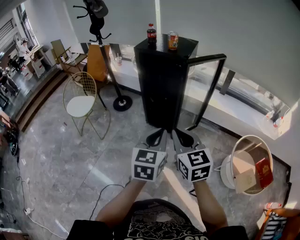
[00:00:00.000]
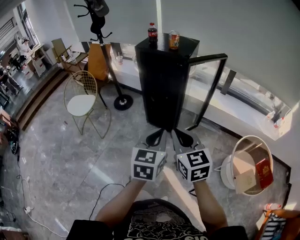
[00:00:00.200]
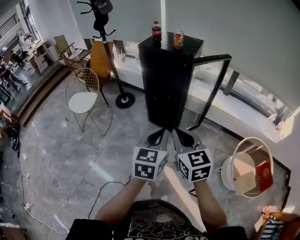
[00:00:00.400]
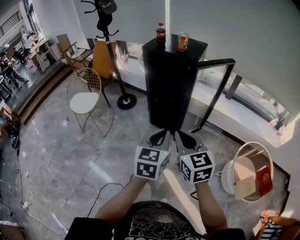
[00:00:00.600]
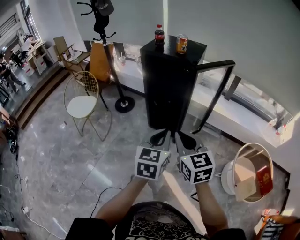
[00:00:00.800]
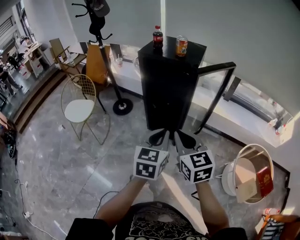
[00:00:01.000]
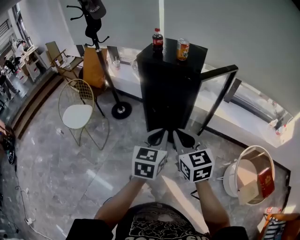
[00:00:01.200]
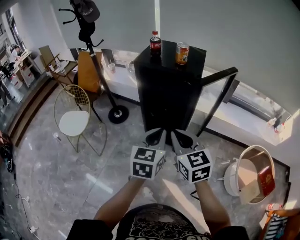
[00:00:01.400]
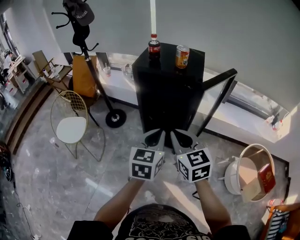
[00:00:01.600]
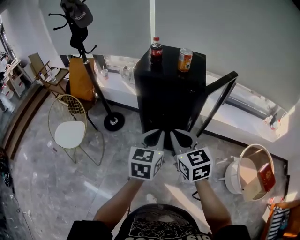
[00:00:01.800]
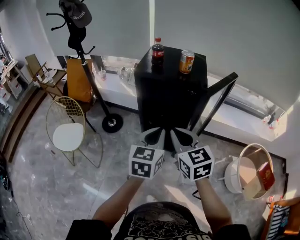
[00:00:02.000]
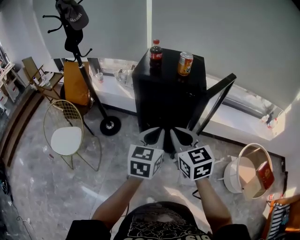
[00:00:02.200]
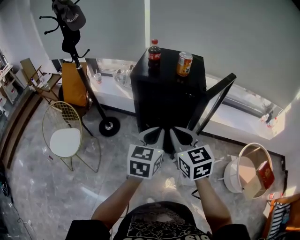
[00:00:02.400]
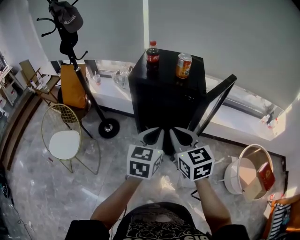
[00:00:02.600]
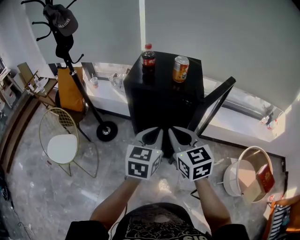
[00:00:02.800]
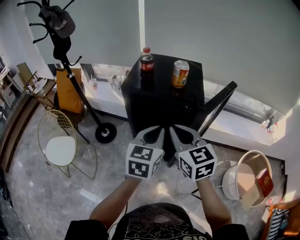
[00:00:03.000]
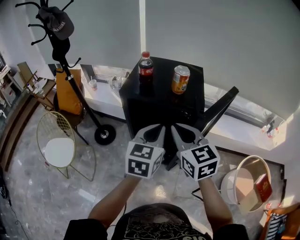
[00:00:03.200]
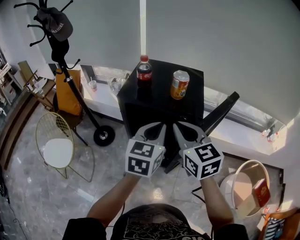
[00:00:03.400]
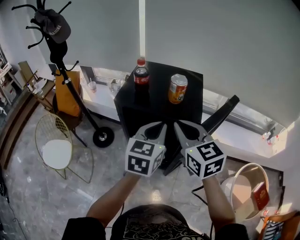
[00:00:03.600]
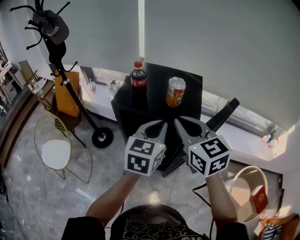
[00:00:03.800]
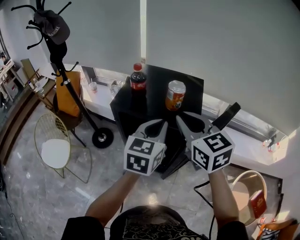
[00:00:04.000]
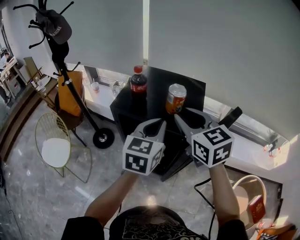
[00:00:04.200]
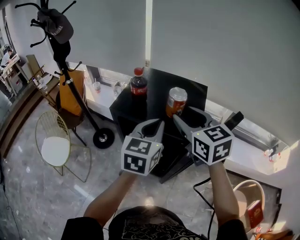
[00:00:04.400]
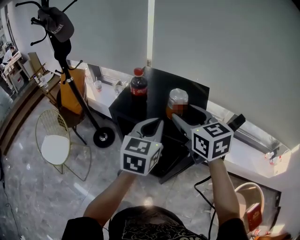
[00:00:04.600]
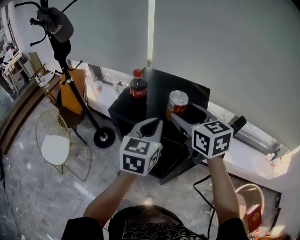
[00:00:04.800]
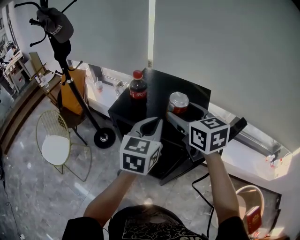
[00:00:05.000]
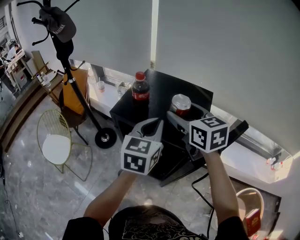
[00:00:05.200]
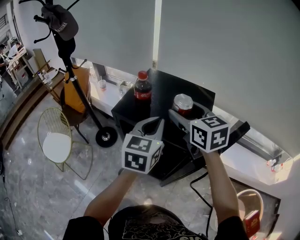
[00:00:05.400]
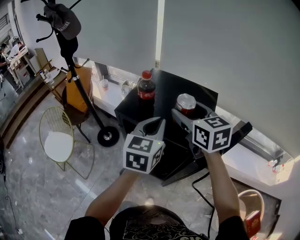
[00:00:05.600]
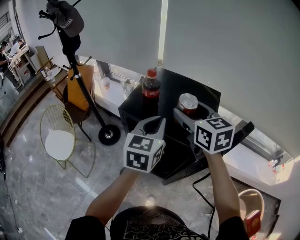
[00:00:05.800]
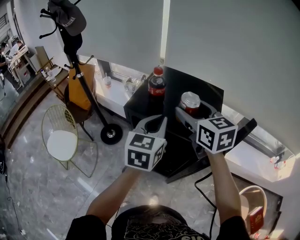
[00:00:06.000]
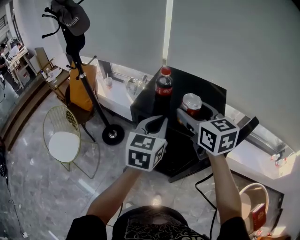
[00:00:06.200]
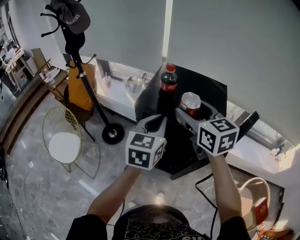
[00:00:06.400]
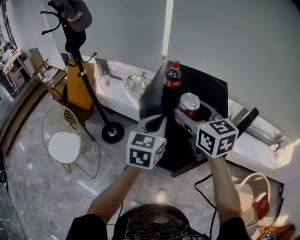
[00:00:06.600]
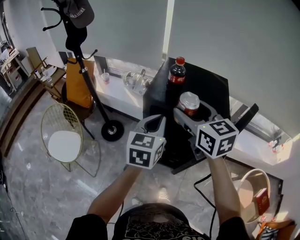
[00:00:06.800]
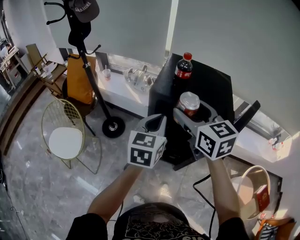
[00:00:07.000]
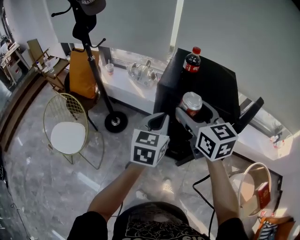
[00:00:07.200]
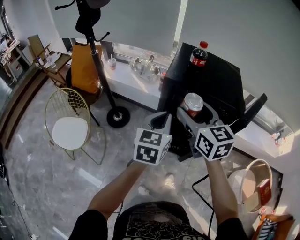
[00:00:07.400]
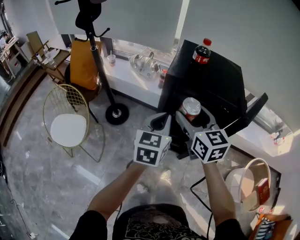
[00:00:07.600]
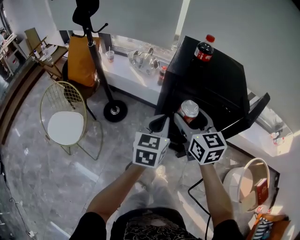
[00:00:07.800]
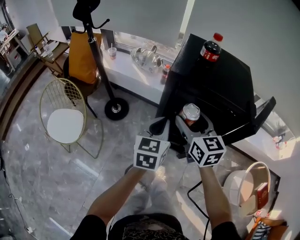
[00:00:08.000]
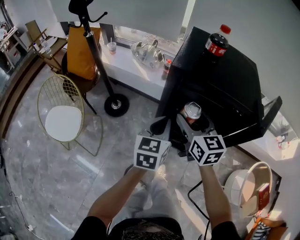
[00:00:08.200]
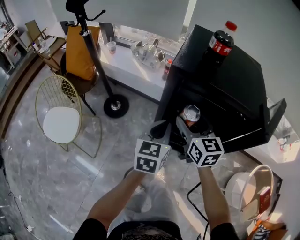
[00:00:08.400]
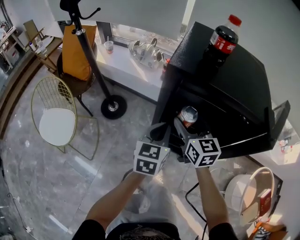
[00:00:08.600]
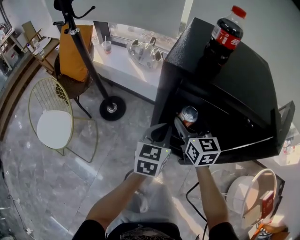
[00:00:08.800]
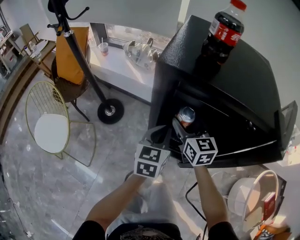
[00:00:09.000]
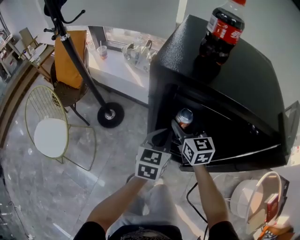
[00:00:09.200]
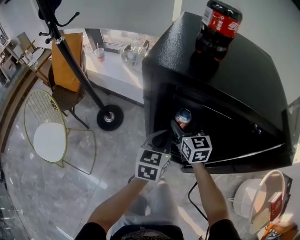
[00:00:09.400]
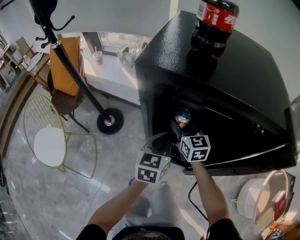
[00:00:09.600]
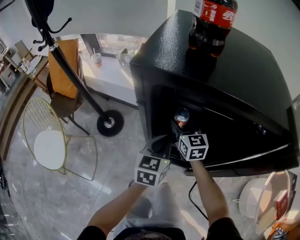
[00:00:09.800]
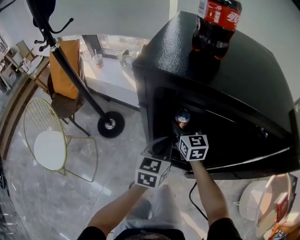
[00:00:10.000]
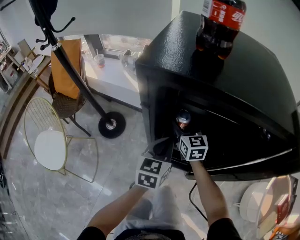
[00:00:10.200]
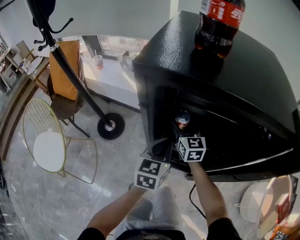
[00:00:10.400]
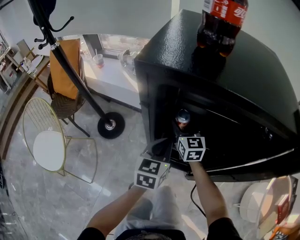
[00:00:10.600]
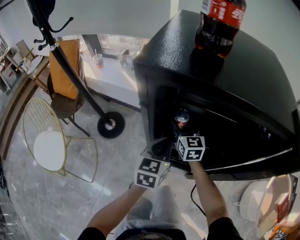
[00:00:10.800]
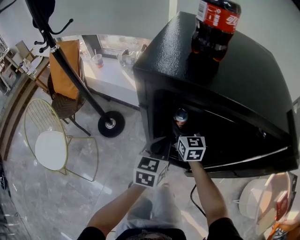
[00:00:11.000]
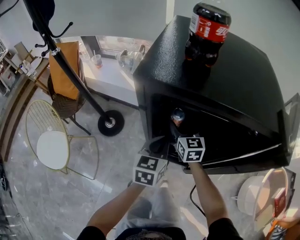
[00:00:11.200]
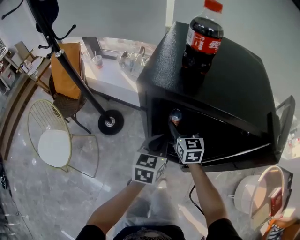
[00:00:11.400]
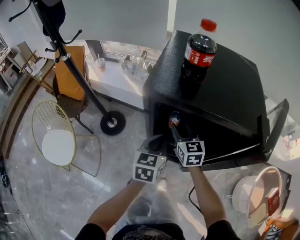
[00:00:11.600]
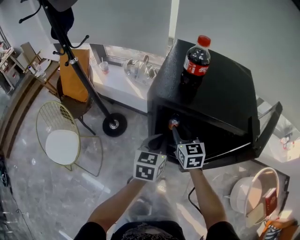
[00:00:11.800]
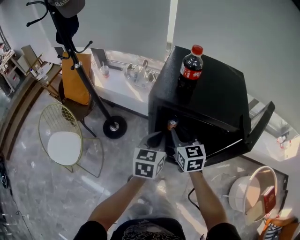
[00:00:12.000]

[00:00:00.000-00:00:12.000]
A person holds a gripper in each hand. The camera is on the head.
00:00:00.000 to 00:00:01.600: The left gripper is displaced forward by roughly 25 cm, while the right gripper heads forward and to the left, covering about 25 cm.
00:00:01.600 to 00:00:03.000: Both grippers travel together forward, some 15 cm.
00:00:03.000 to 00:00:04.400: The left gripper moves forward, roughly 15 cm. Meanwhile the right gripper travels forward and to the right by some 20 cm, and opens.
00:00:04.400 to 00:00:06.000: The left gripper travels to the left by some 5 cm. Meanwhile the right gripper moves forward, approximately 5 cm, and opens up.
00:00:06.000 to 00:00:07.600: The two grippers go about 20 cm to the left, backward and downward.
00:00:07.600 to 00:00:09.000: The grippers both shift downward and forward by approximately 25 cm.
00:00:09.000 to 00:00:10.400: The right gripper is displaced downward and forward by about 15 cm. The left gripper goes approximately 5 cm downward.
00:00:10.400 to 00:00:12.000: The left gripper travels upward by some 20 cm. The right gripper is displaced upward and backward by about 25 cm, and closes its fingers.

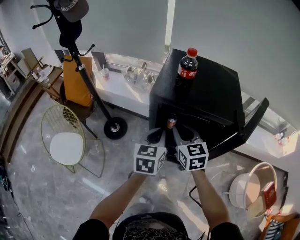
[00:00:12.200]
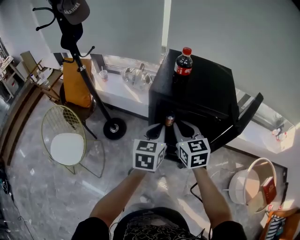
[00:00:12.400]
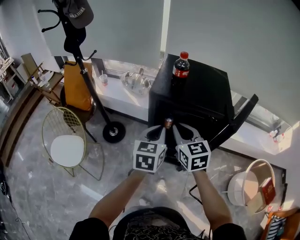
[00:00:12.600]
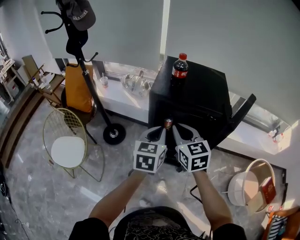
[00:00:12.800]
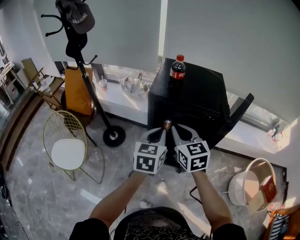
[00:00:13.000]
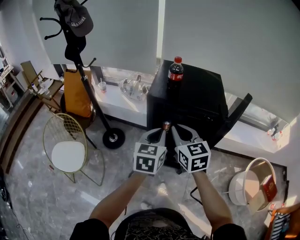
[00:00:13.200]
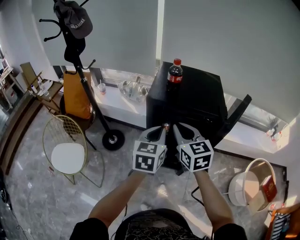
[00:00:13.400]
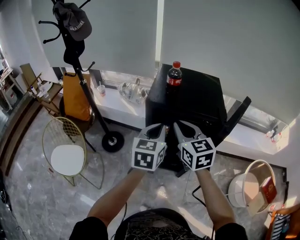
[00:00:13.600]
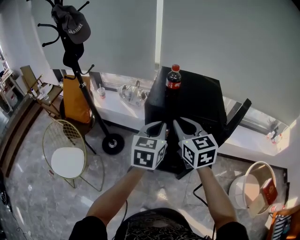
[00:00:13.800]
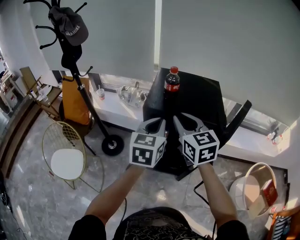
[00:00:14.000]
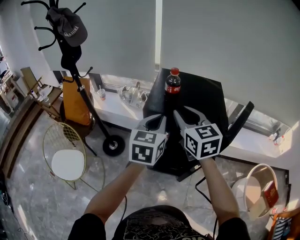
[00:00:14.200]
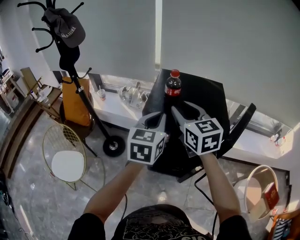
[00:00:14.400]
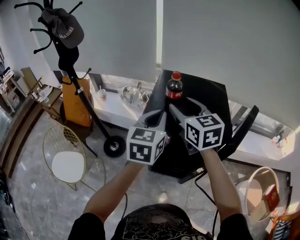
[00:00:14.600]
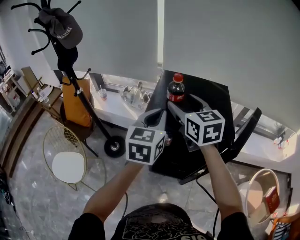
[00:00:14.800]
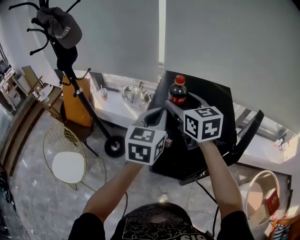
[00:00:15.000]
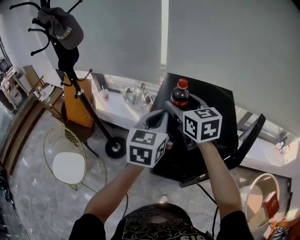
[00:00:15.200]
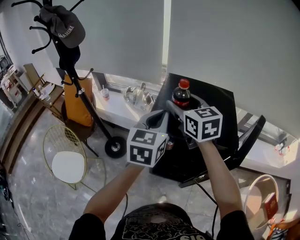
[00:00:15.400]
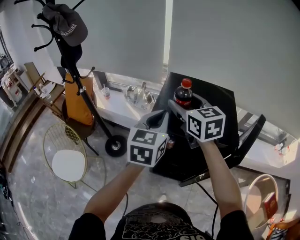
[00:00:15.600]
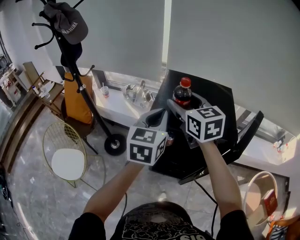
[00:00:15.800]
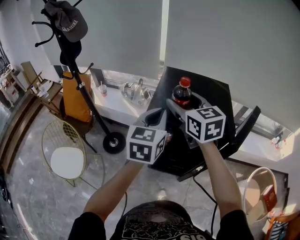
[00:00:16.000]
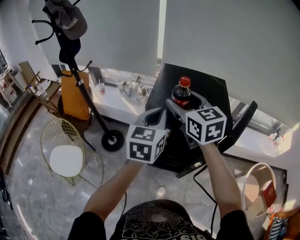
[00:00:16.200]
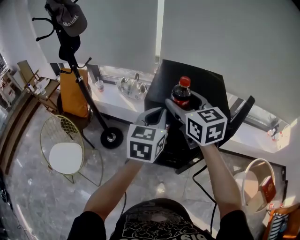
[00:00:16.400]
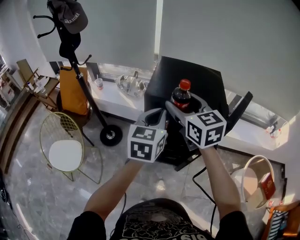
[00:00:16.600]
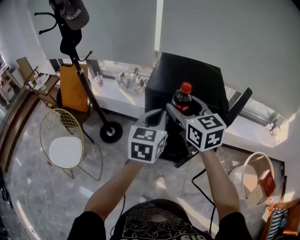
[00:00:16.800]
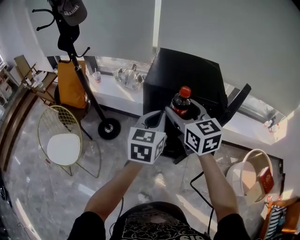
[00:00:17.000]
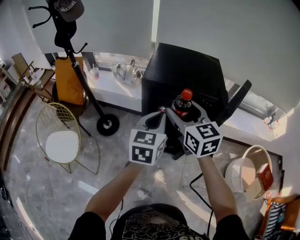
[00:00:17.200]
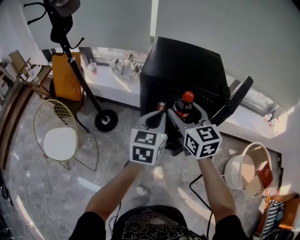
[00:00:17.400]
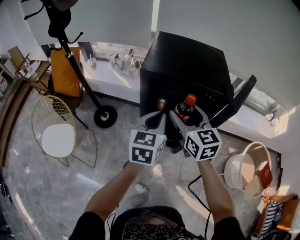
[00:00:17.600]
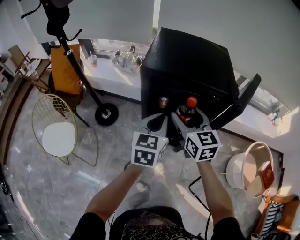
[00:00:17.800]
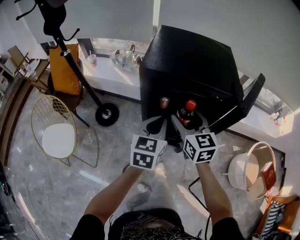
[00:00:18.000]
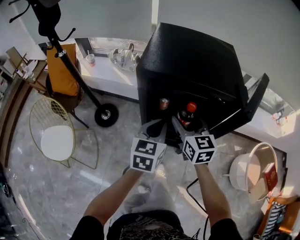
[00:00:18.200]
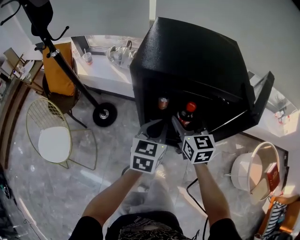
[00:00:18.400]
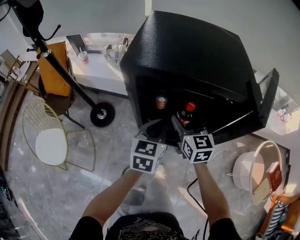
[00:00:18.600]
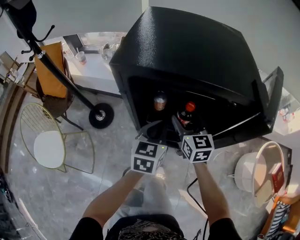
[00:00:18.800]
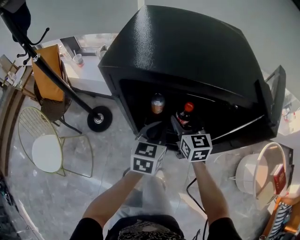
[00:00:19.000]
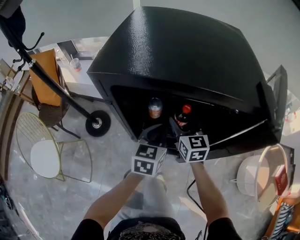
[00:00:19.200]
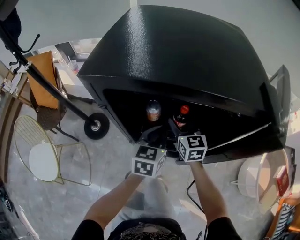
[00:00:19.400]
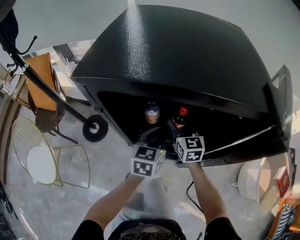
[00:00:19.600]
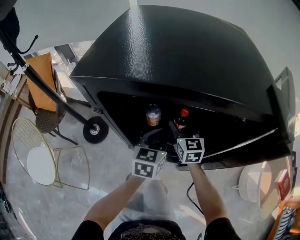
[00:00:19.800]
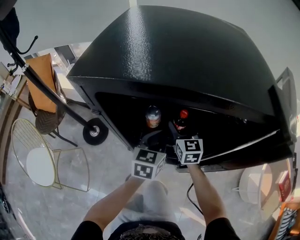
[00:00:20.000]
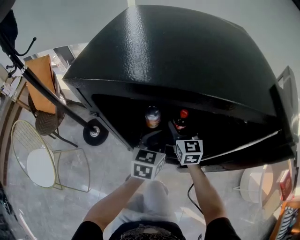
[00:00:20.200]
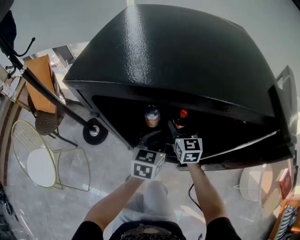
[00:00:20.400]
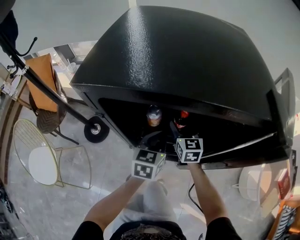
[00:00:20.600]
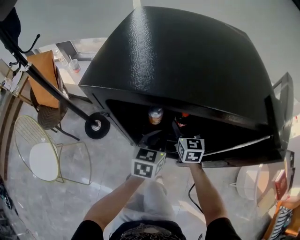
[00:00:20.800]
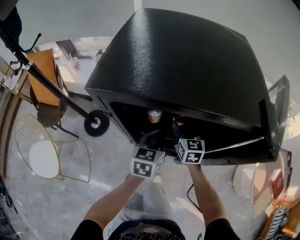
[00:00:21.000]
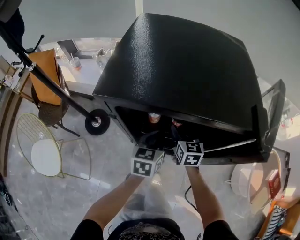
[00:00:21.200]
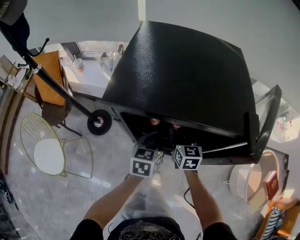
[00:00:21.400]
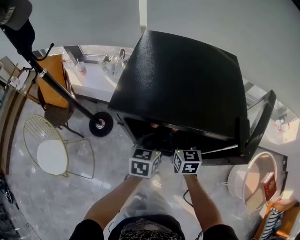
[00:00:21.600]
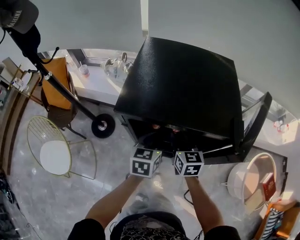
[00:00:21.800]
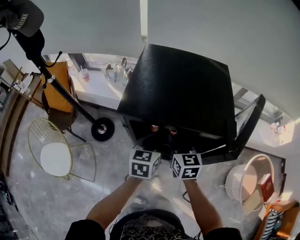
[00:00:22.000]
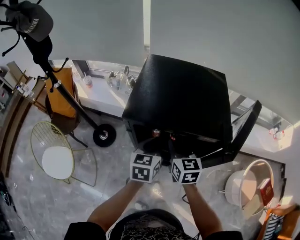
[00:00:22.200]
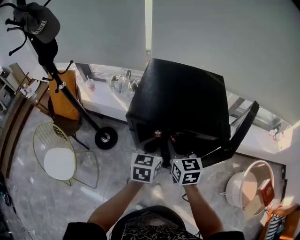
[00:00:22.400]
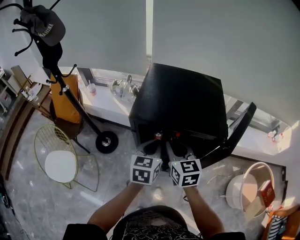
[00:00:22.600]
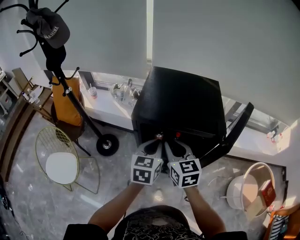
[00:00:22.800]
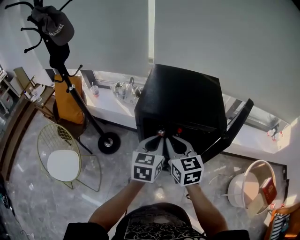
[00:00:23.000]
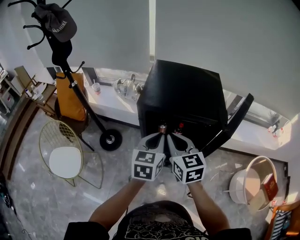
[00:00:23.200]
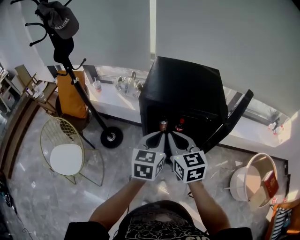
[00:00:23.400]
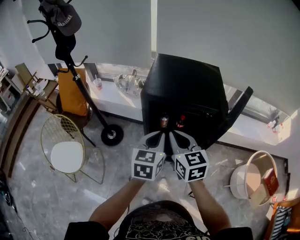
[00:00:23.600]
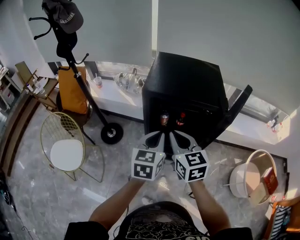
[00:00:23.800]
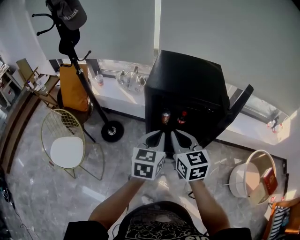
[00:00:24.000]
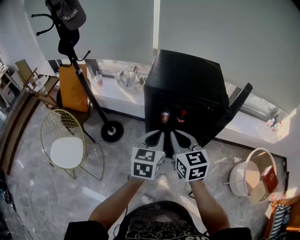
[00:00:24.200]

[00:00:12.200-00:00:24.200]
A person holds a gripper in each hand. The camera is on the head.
00:00:12.200 to 00:00:13.800: Both grippers move upward, about 15 cm.
00:00:13.800 to 00:00:15.200: The grippers both shift forward by about 15 cm. The right gripper opens up.
00:00:15.200 to 00:00:16.600: The two grippers go roughly 15 cm backward.
00:00:16.600 to 00:00:18.200: The two grippers go roughly 20 cm downward.
00:00:18.200 to 00:00:19.800: The two grippers go approximately 25 cm downward and forward.
00:00:19.800 to 00:00:21.200: The left gripper shifts by some 5 cm. The right gripper changes place by about 5 cm.
00:00:21.200 to 00:00:22.600: The right gripper shifts about 25 cm upward and backward, and closes. The left gripper is displaced upward by some 20 cm.
00:00:22.600 to 00:00:24.200: Both grippers move backward, roughly 15 cm.
